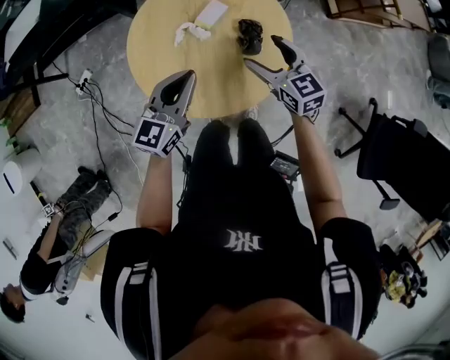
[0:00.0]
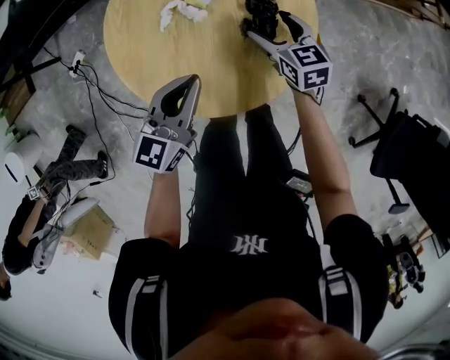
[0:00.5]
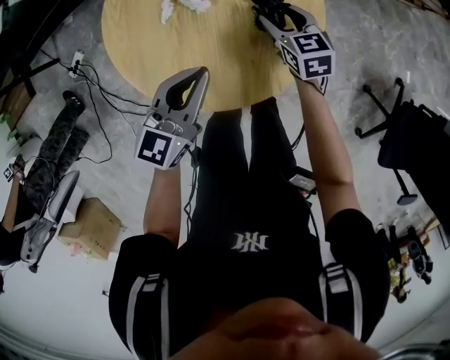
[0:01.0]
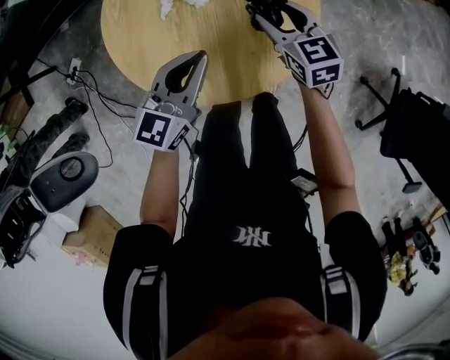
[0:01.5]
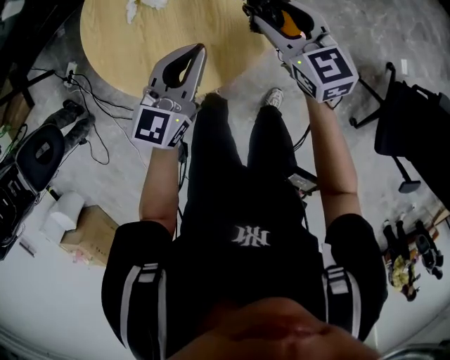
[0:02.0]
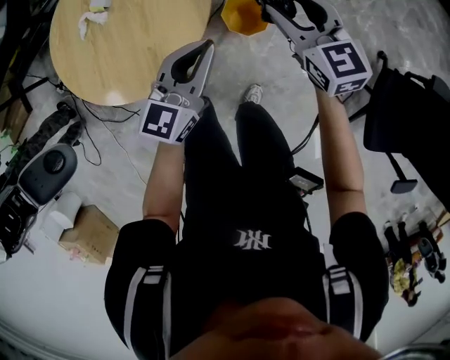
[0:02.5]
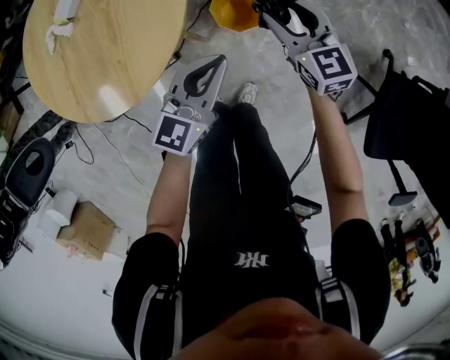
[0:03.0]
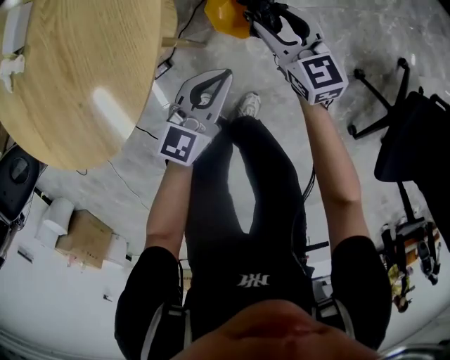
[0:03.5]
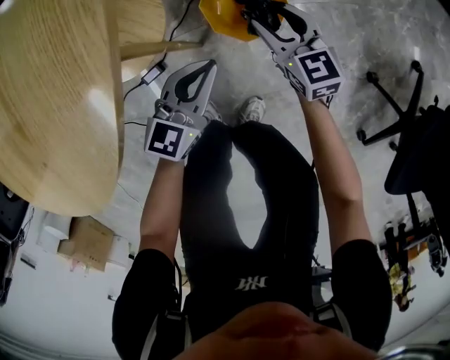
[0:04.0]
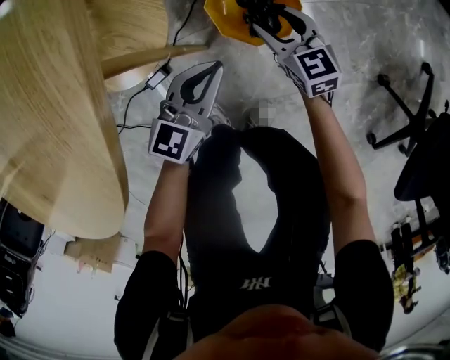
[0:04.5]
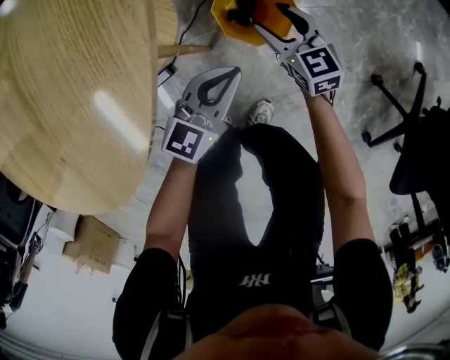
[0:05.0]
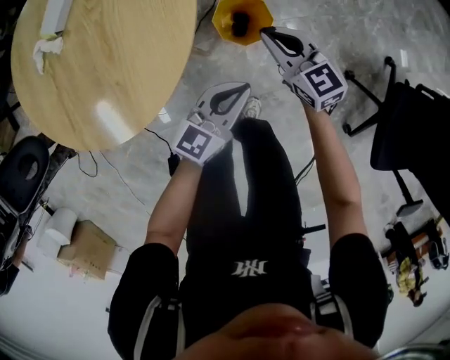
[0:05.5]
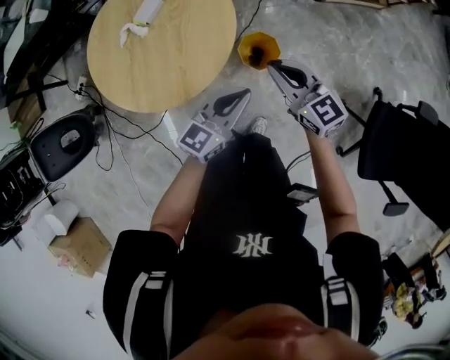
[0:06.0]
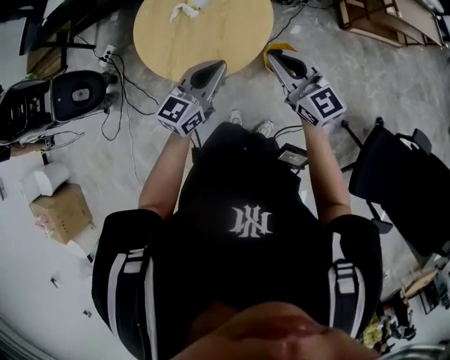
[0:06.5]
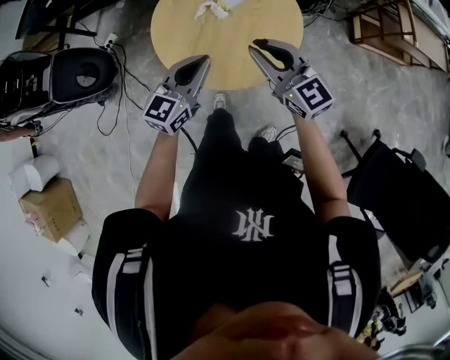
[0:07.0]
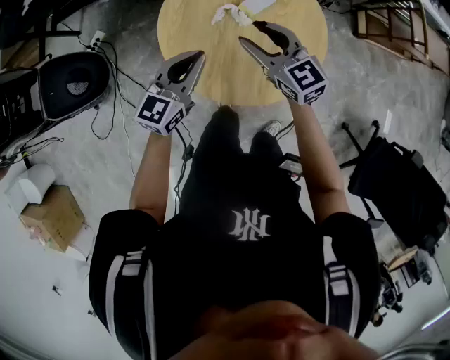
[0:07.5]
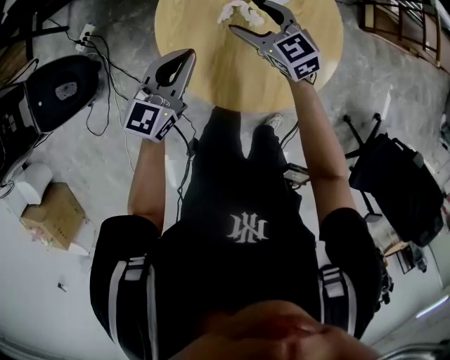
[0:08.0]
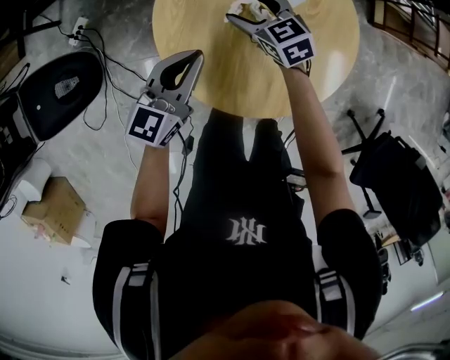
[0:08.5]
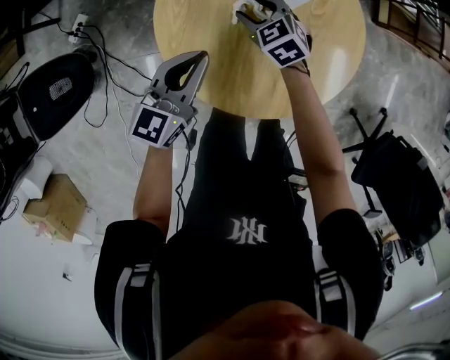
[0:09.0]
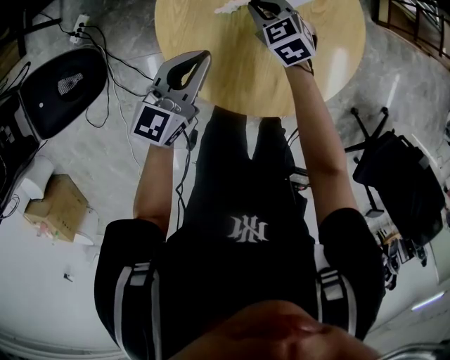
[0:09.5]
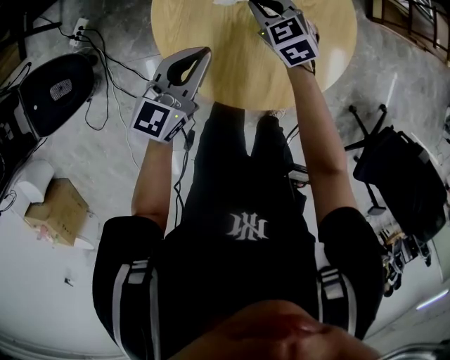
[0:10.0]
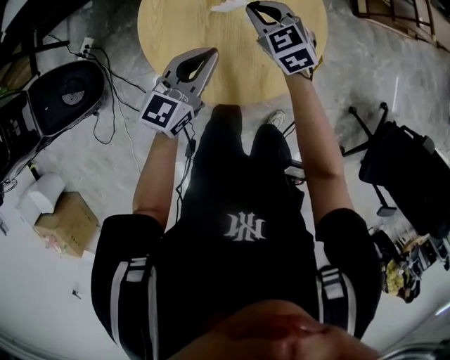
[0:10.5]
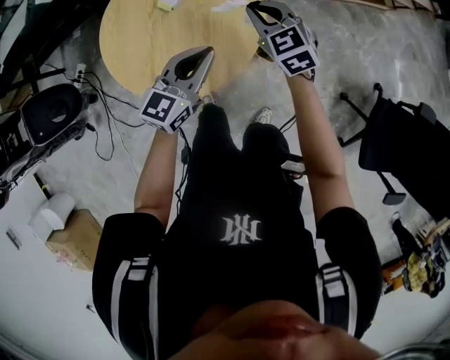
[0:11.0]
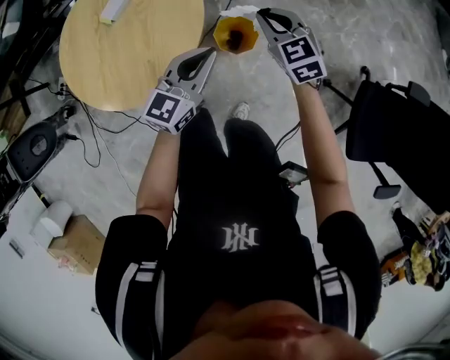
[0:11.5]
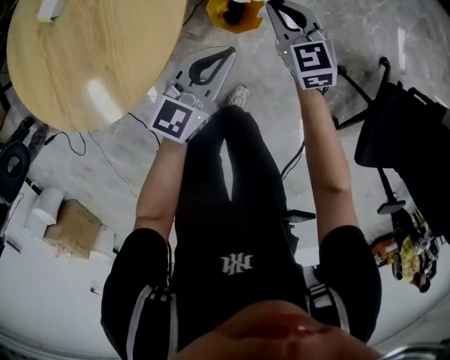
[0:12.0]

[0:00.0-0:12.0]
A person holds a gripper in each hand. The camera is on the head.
0:00.0 to 0:02.0: The left gripper travels to the right and downward by approximately 15 cm. The right gripper heads to the right, covering about 10 cm, moves some 15 cm downward and comes back, and closes up.
0:02.0 to 0:04.0: Both grippers travel together downward and to the right, about 50 cm.
0:04.0 to 0:06.0: Both grippers move upward, approximately 40 cm. The right gripper closes.
0:06.0 to 0:08.0: The two grippers travel together, to the left and forward, some 50 cm. The left gripper swivels roughly 20 degrees, while the right gripper rotates some 20 degrees, and opens.
0:08.0 to 0:10.0: The right gripper is displaced downward by about 5 cm, and closes.
0:10.0 to 0:12.0: The pair of grippers is taken to the right, some 50 cm. The right gripper changes its angle by roughly 20 degrees.

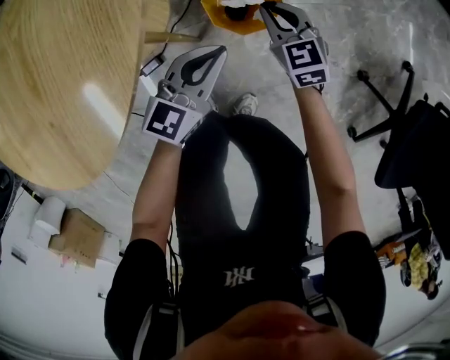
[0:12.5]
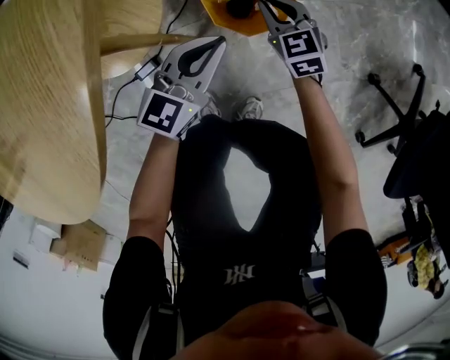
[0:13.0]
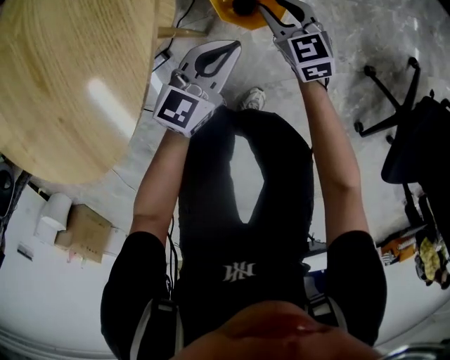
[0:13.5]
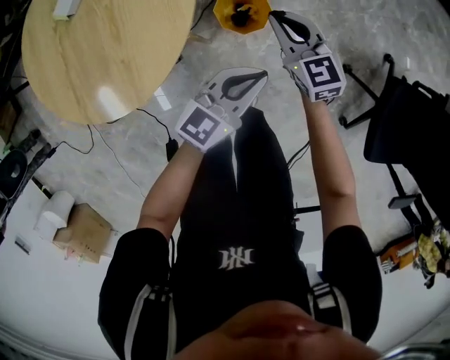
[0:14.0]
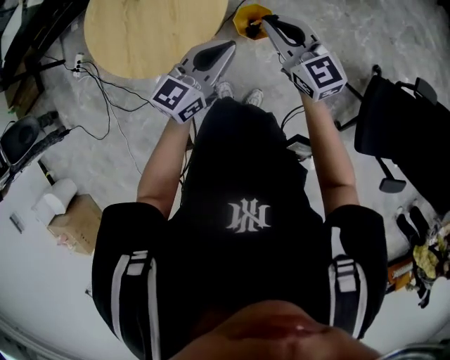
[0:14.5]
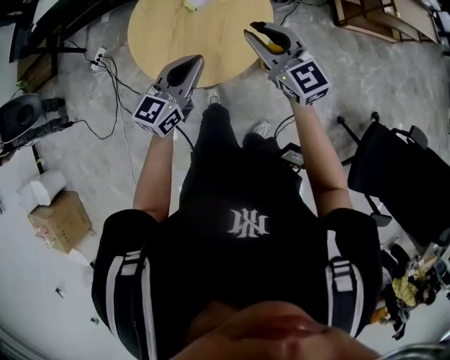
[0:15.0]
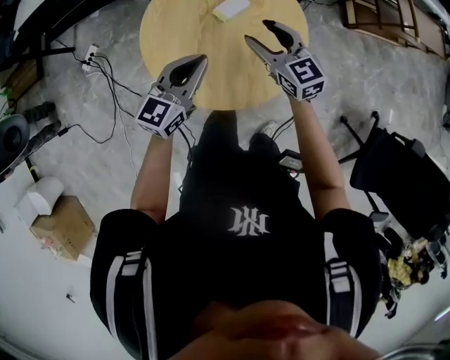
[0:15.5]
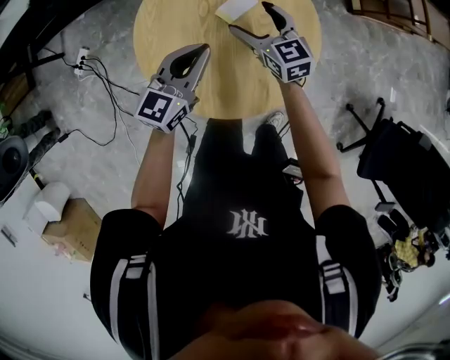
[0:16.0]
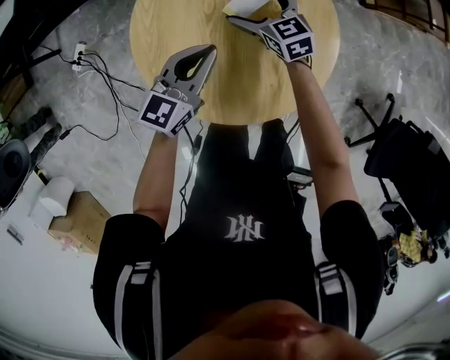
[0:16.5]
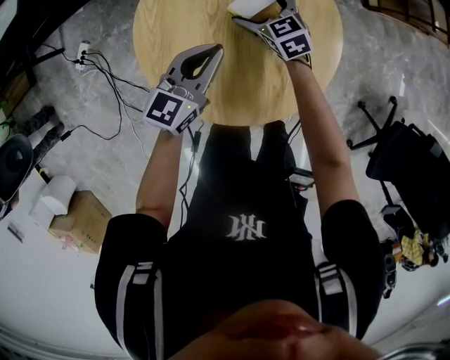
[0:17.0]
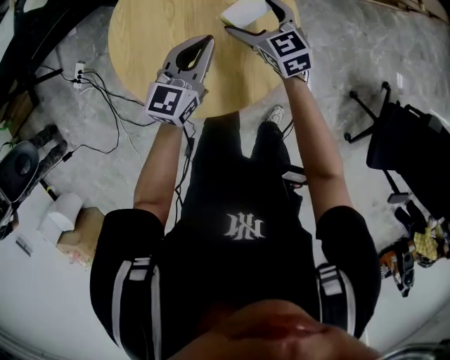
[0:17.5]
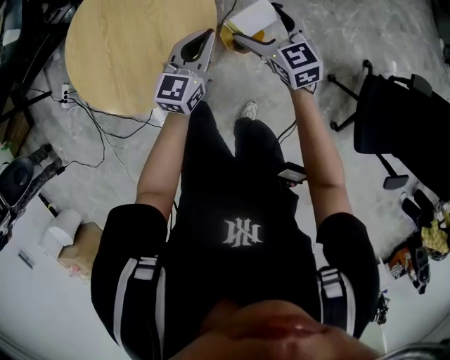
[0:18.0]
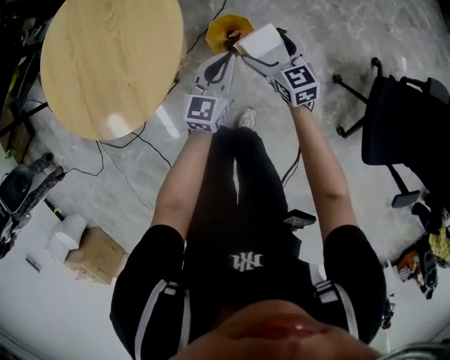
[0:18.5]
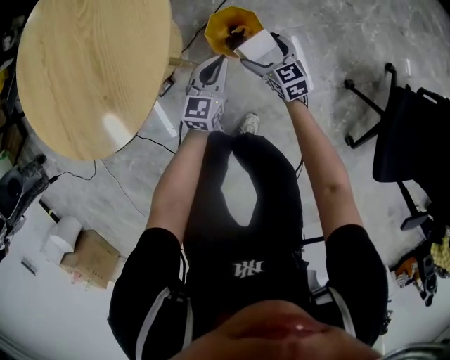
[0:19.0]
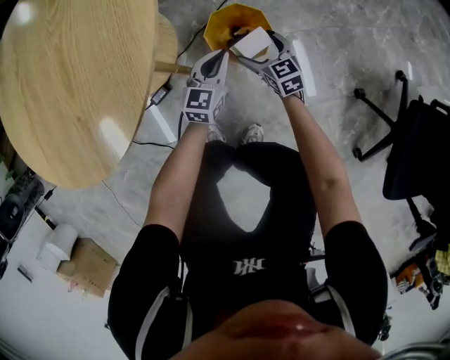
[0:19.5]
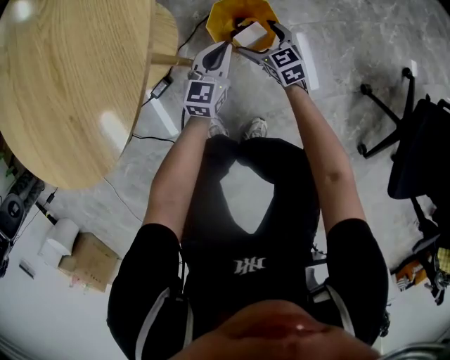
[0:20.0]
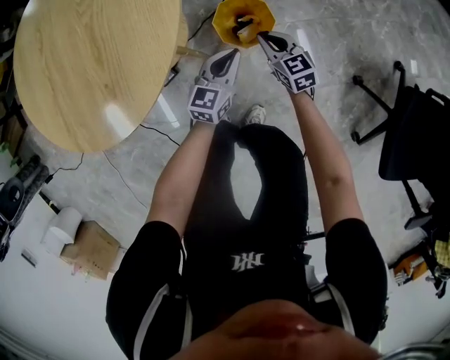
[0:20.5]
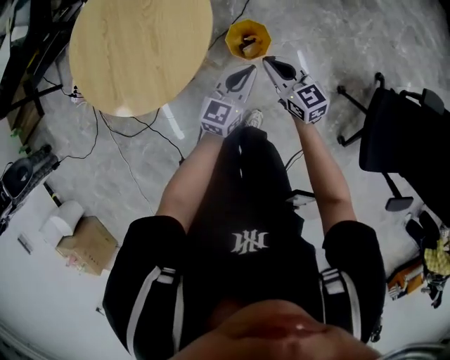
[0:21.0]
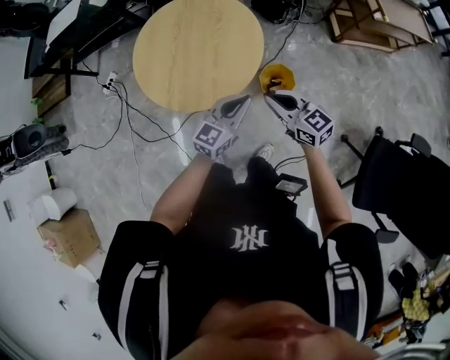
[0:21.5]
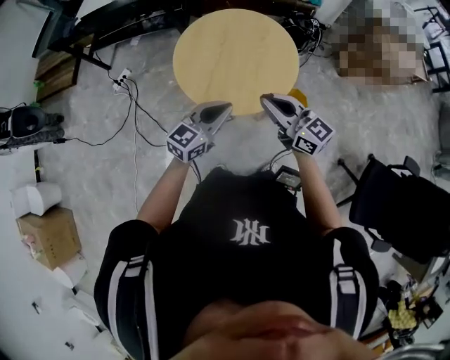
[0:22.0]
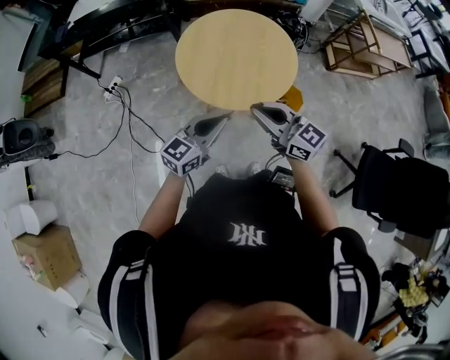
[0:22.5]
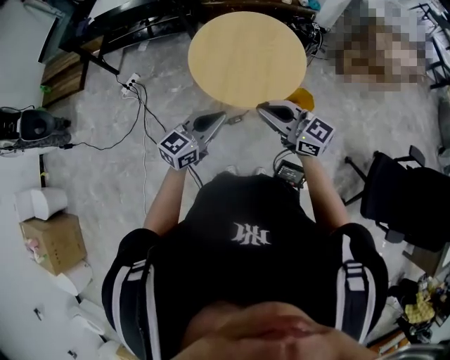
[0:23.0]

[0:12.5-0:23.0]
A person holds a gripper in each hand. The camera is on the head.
0:12.5 to 0:14.5: Both grippers travel together upward, some 50 cm. The right gripper swivels approximately 30 degrees.
0:14.5 to 0:16.5: The two grippers travel together, to the left and forward, approximately 40 cm. The right gripper is displaced downward by roughly 20 cm, turns by approximately 20 degrees, and opens its fingers.
0:16.5 to 0:19.0: Both grippers are carried to the right and backward, some 50 cm. Both grippers travel together downward, approximately 30 cm.
0:19.0 to 0:21.0: Both grippers move upward, about 25 cm. The right gripper closes.
0:21.0 to 0:23.0: The grippers both shift to the left and upward by about 50 cm. The right gripper swivels roughly 40 degrees.

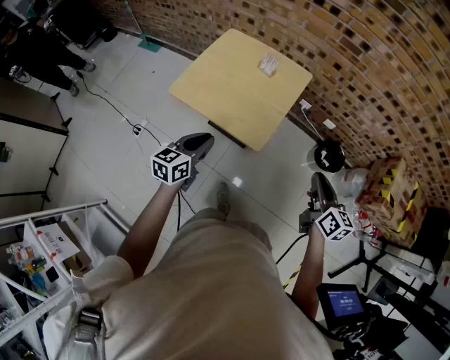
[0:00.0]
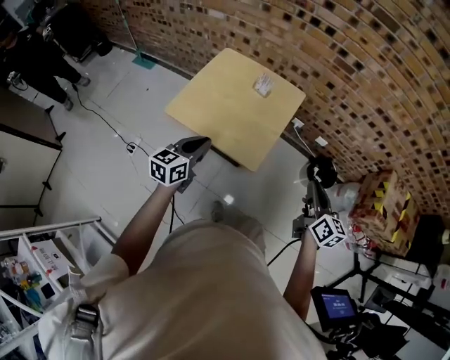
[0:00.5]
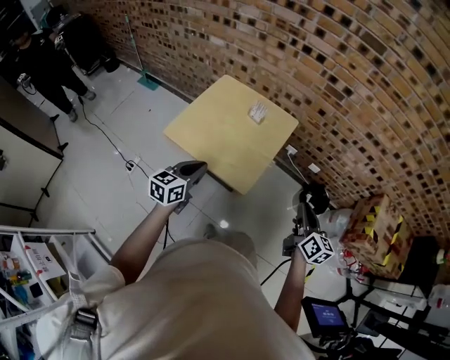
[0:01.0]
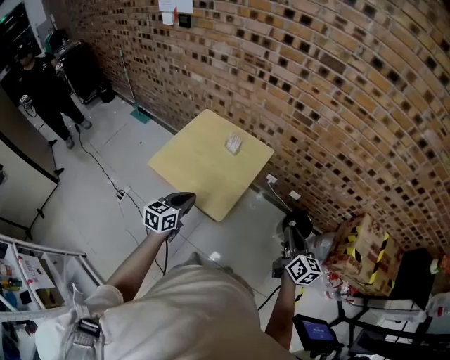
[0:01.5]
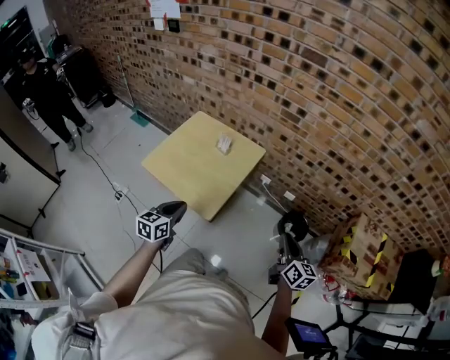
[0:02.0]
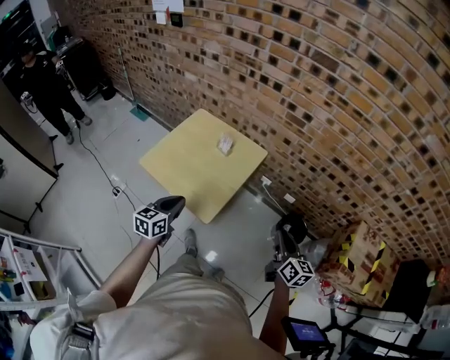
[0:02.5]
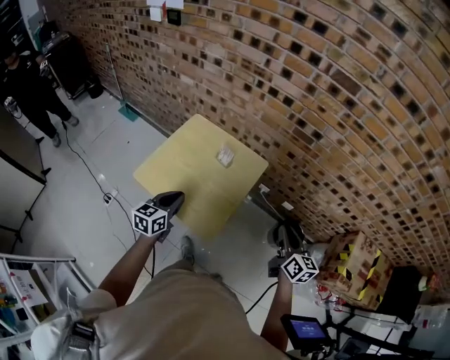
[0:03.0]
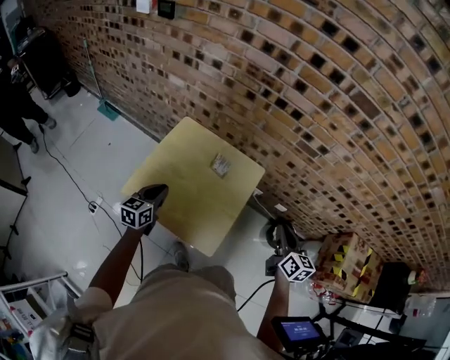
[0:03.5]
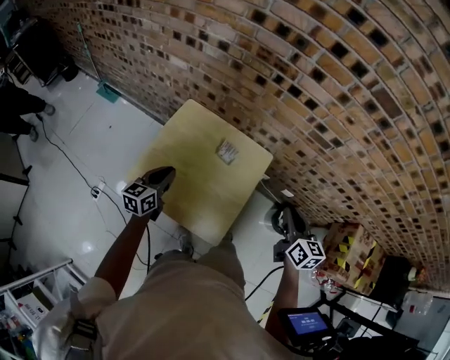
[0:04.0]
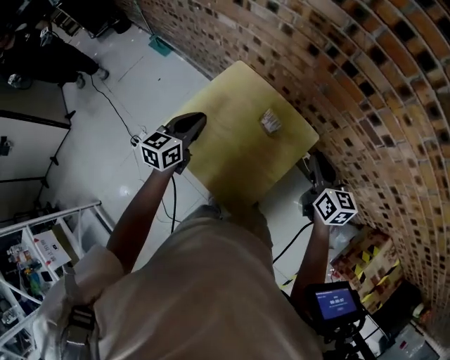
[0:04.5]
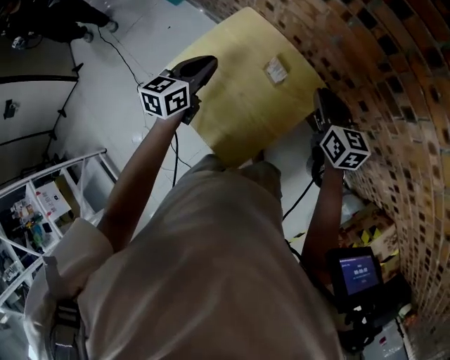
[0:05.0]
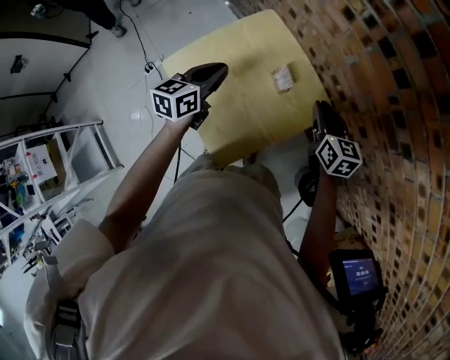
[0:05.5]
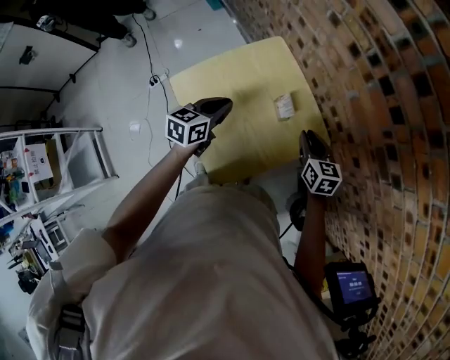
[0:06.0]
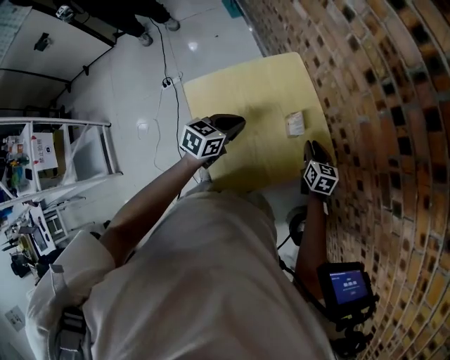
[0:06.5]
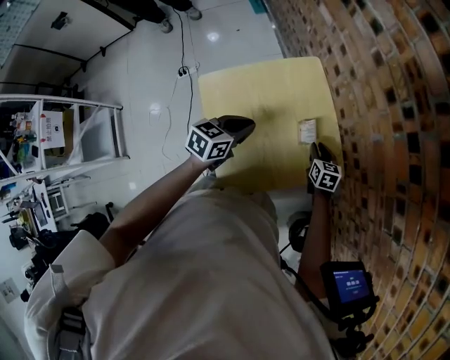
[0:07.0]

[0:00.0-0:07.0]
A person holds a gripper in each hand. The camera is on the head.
0:00.0 to 0:02.0: The left gripper travels to the right by approximately 10 cm; the right gripper shifts roughly 15 cm to the right and forward.
0:02.0 to 0:03.5: Both grippers move forward and to the left, about 30 cm.
0:03.5 to 0:05.0: The right gripper is displaced forward by approximately 25 cm, and turns by about 30 degrees; the left gripper moves forward and to the right, some 10 cm.
0:05.0 to 0:07.0: The left gripper moves downward, about 10 cm. The right gripper shifts approximately 25 cm downward, and rotates some 30 degrees.
